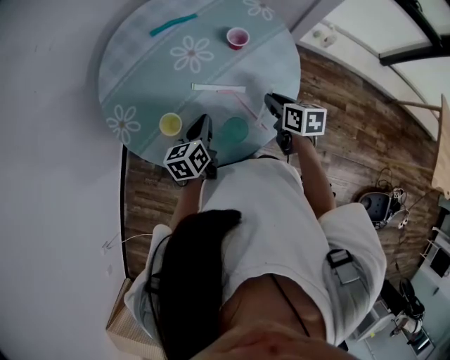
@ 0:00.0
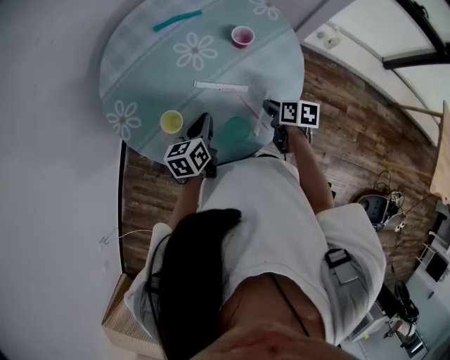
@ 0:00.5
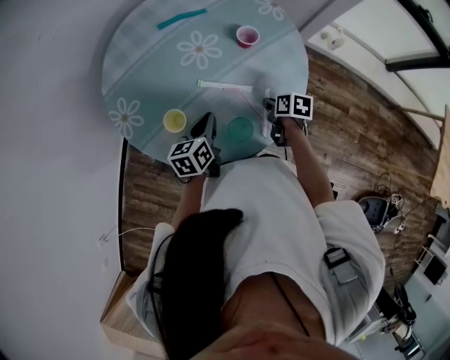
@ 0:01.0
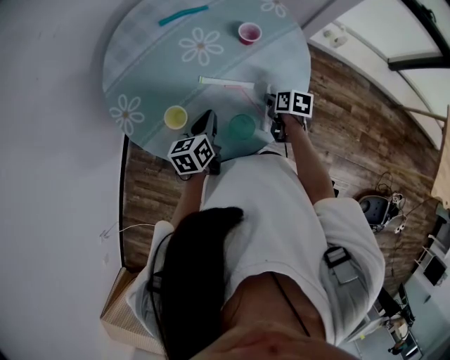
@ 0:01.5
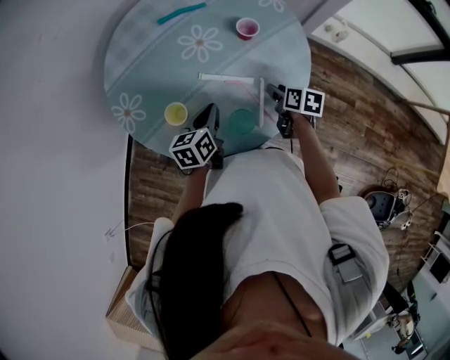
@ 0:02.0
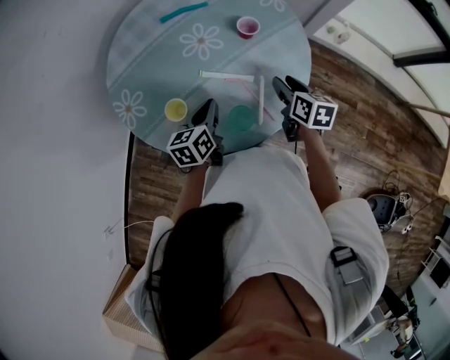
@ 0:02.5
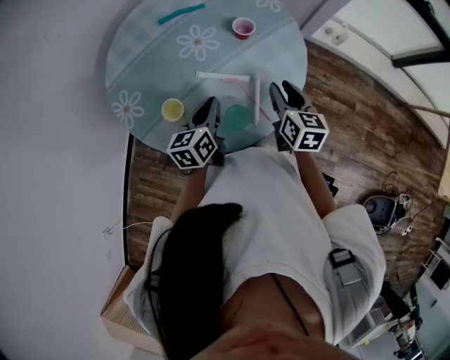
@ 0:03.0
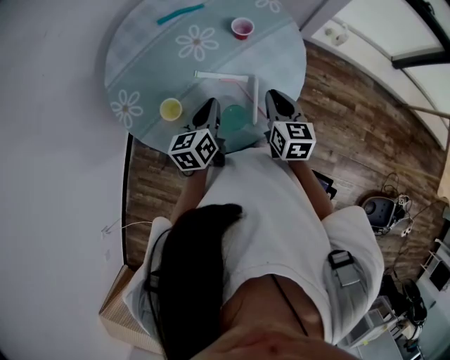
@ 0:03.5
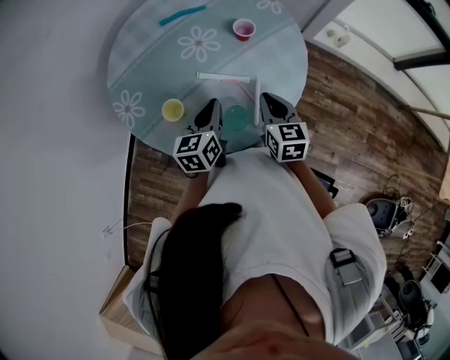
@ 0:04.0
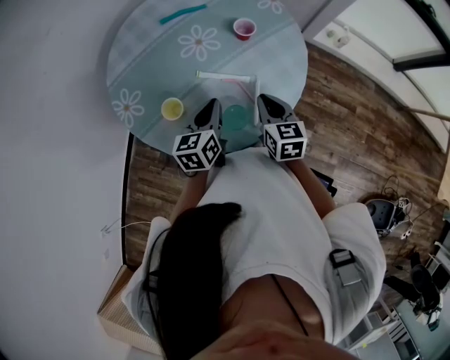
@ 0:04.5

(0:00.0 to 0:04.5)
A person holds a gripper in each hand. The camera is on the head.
0:00.0 - 0:02.0: The right gripper is displaced downward by approximately 5 cm, and opens.
0:02.0 - 0:04.5: The left gripper changes place by approximately 5 cm. Meanwhile the right gripper goes approximately 10 cm upward and backward, turns by approximately 30 degrees, and closes up.

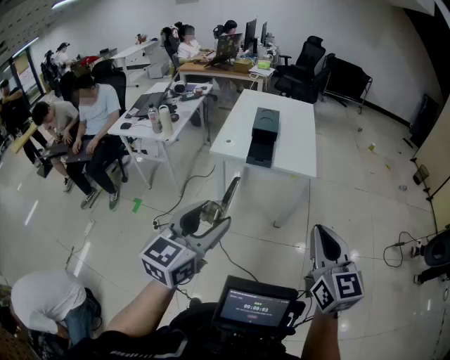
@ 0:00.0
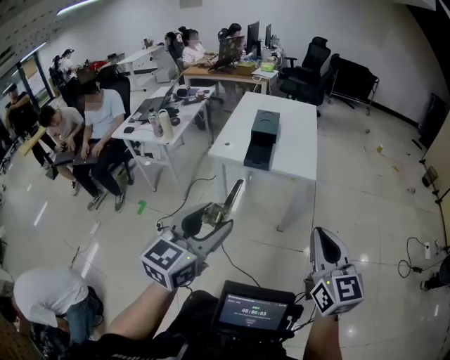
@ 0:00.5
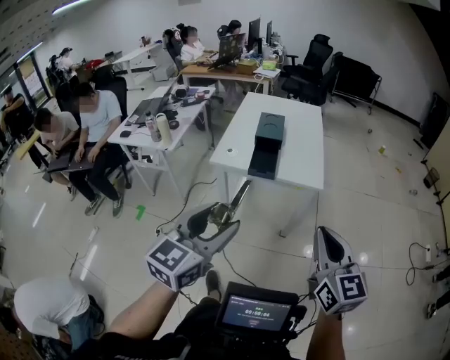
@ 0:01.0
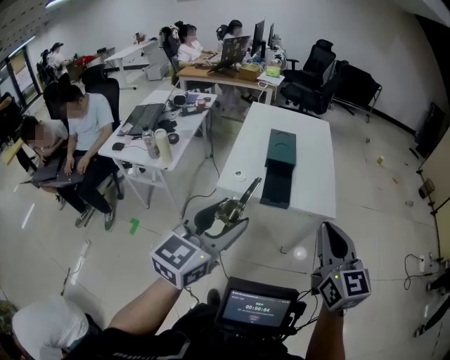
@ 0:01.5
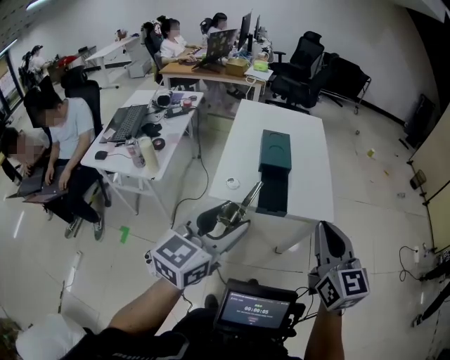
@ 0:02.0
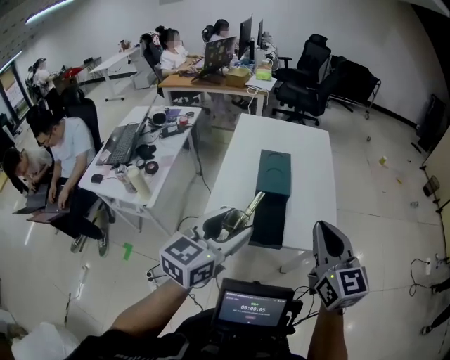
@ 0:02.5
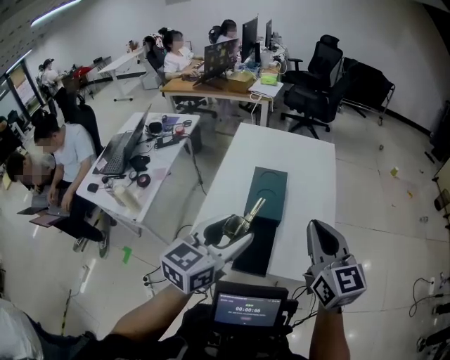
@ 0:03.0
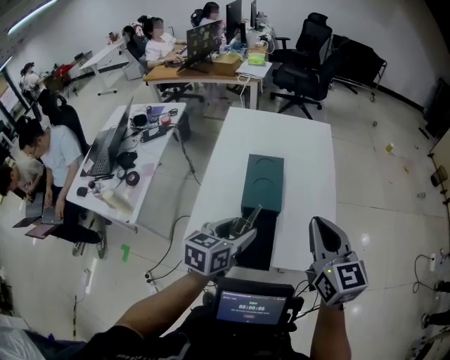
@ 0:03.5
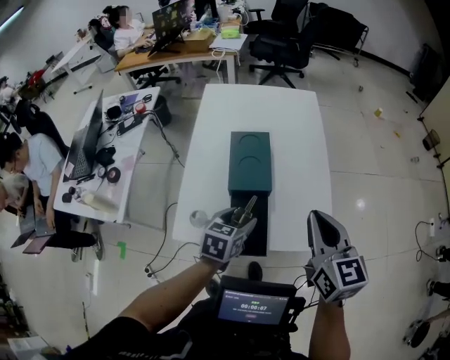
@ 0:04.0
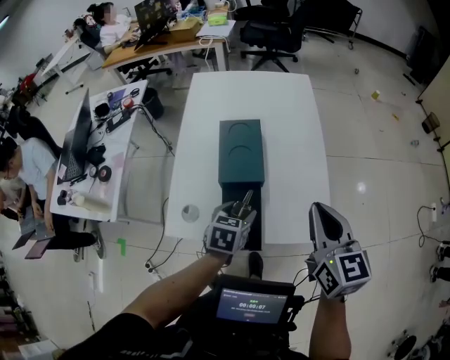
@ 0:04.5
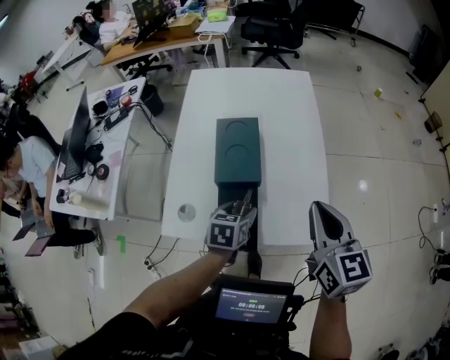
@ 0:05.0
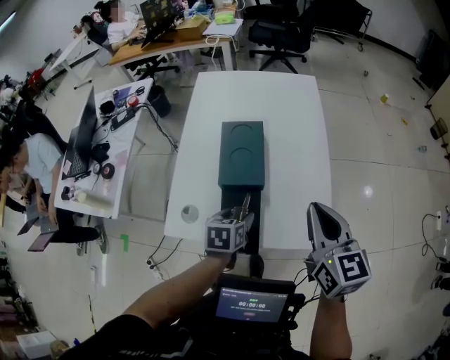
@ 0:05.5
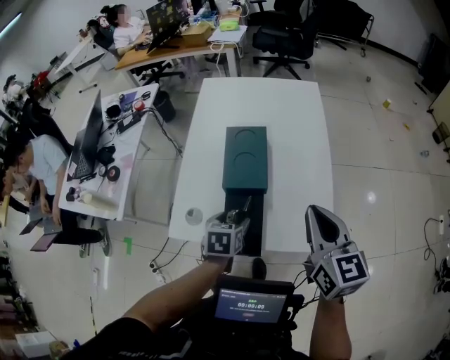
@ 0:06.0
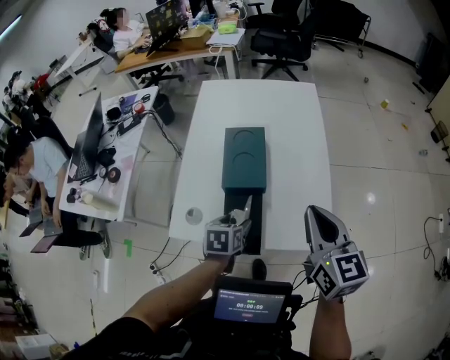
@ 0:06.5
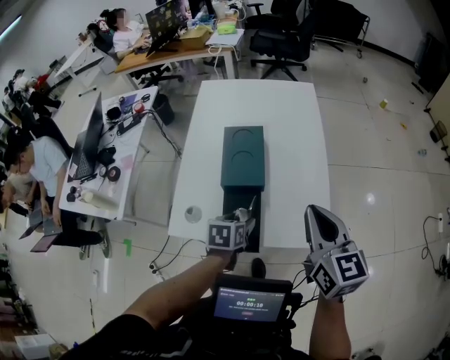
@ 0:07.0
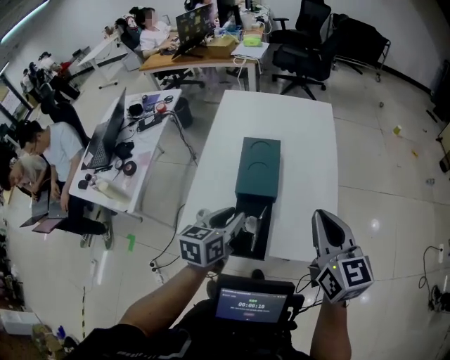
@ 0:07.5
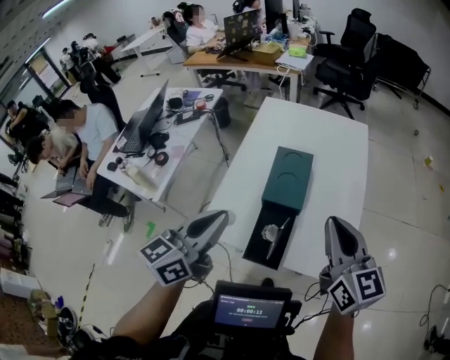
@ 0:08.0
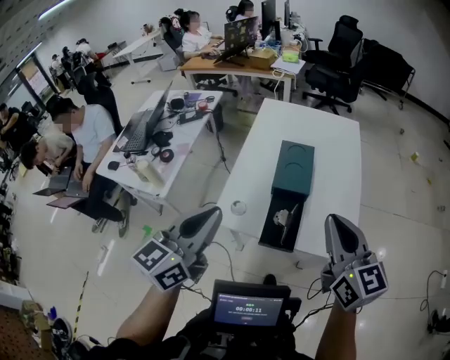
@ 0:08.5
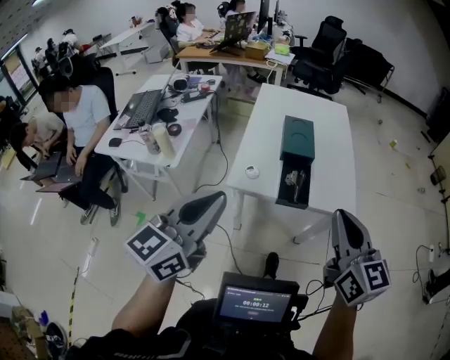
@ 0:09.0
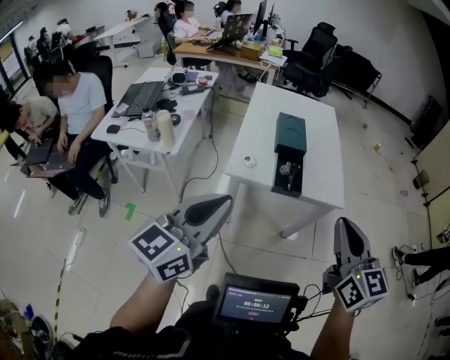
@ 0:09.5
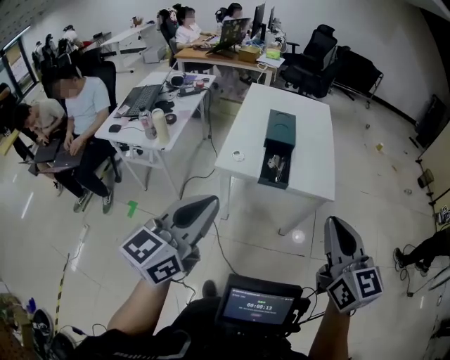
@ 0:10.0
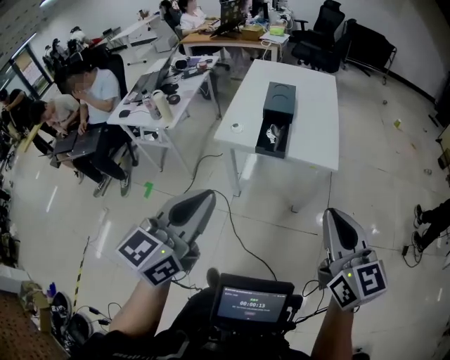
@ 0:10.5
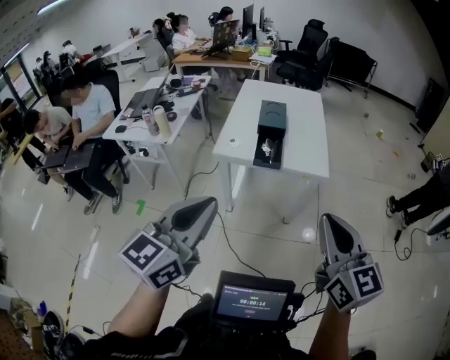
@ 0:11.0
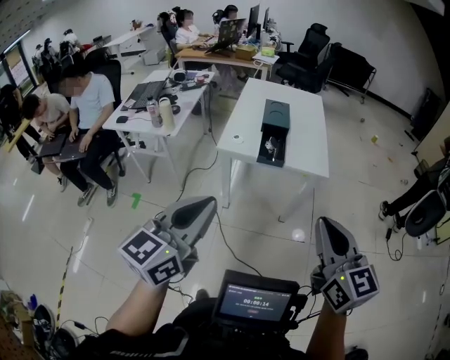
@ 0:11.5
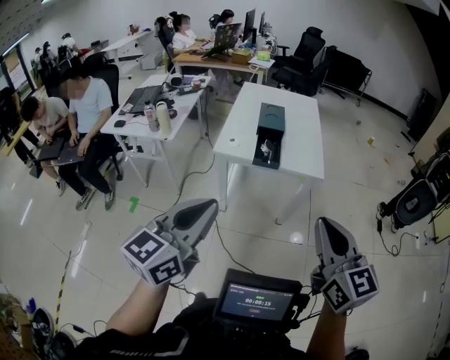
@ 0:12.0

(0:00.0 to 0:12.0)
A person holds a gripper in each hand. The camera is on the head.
0:00.0 - 0:02.0: The two grippers travel together, forward and to the left, some 40 cm.
0:02.0 - 0:04.0: Both grippers are carried forward, roughly 50 cm. The left gripper is displaced downward by about 25 cm, and angles its fingers downward, by approximately 40 degrees.
0:04.0 - 0:06.0: The right gripper shifts by about 5 cm, while the left gripper moves downward, roughly 5 cm, and changes its angle by approximately 20 degrees.
0:06.0 - 0:08.0: The right gripper moves upward, roughly 10 cm. The left gripper moves upward, approximately 30 cm, tips its fingers upward by roughly 50 degrees, and closes.
0:08.0 - 0:10.0: The pair of grippers is taken backward, roughly 60 cm.
0:10.0 - 0:12.0: Both grippers travel together backward, roughly 20 cm.

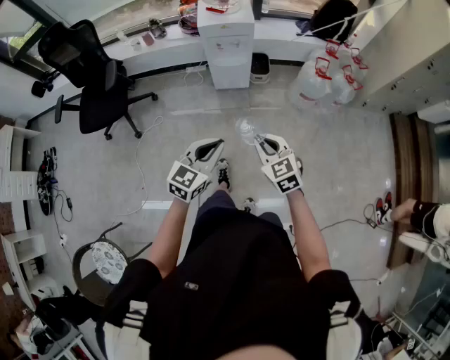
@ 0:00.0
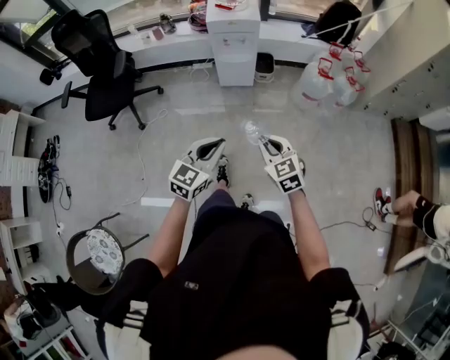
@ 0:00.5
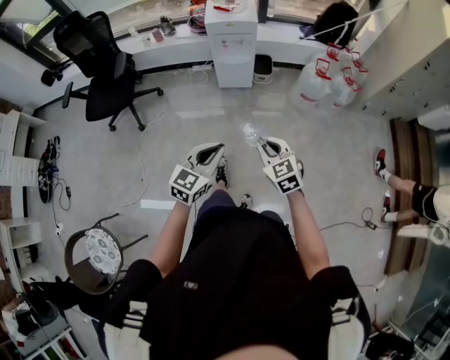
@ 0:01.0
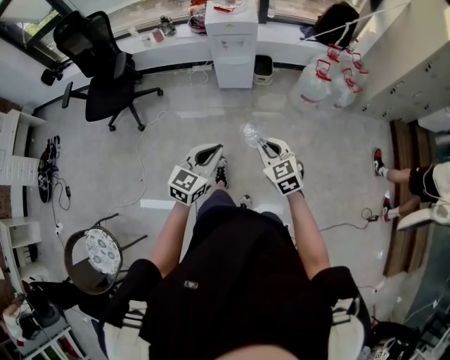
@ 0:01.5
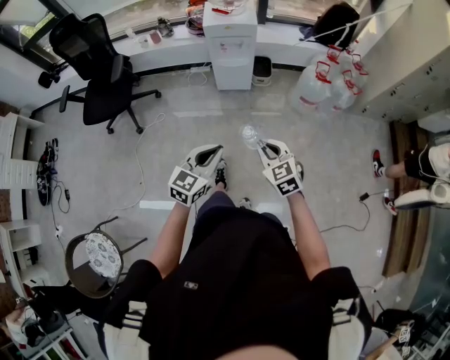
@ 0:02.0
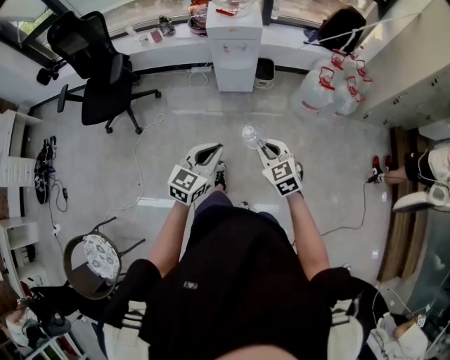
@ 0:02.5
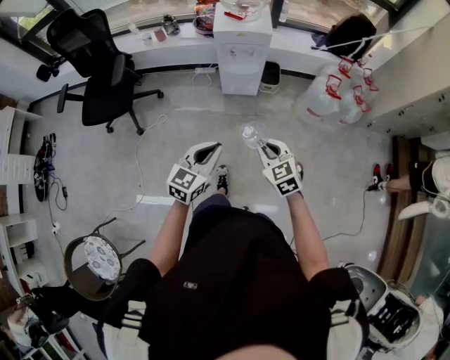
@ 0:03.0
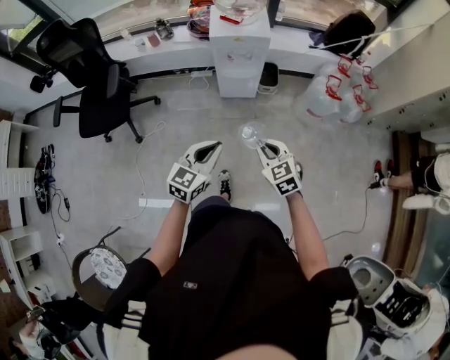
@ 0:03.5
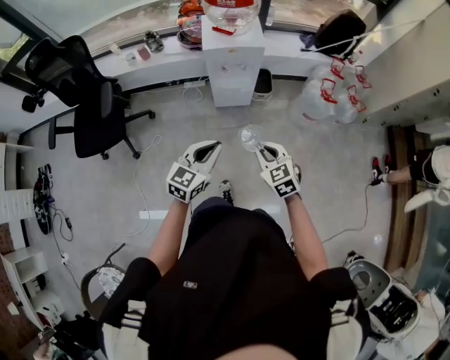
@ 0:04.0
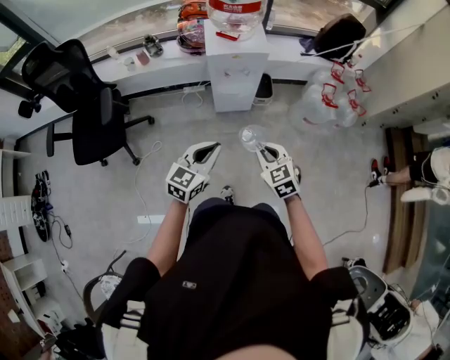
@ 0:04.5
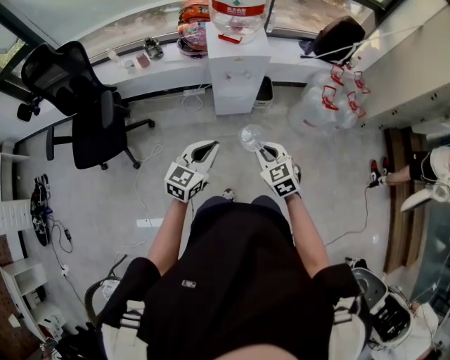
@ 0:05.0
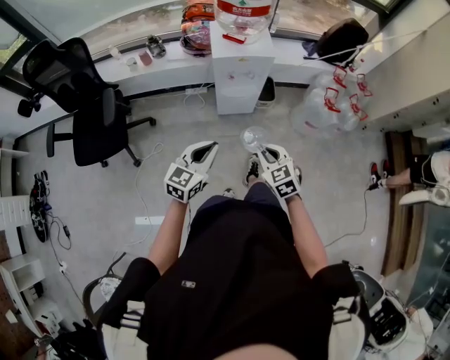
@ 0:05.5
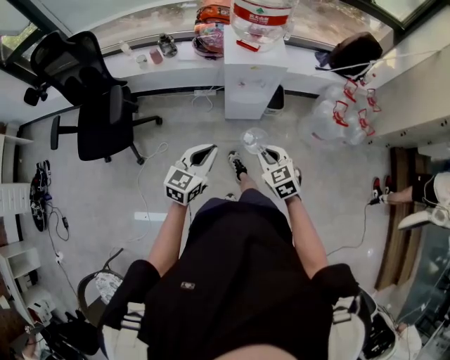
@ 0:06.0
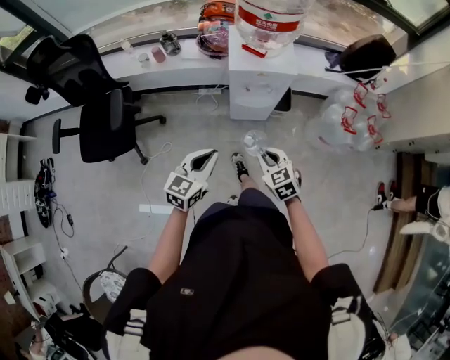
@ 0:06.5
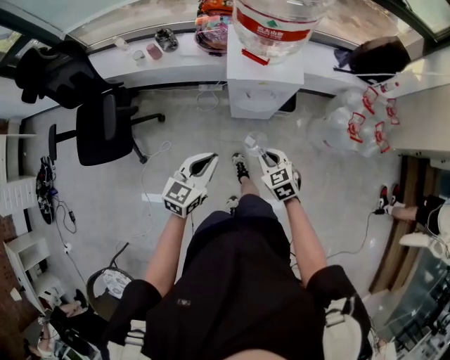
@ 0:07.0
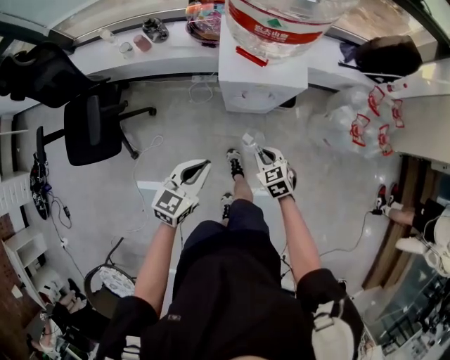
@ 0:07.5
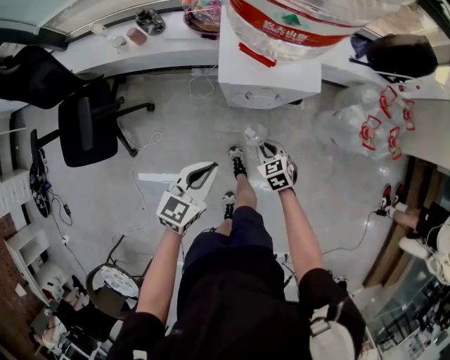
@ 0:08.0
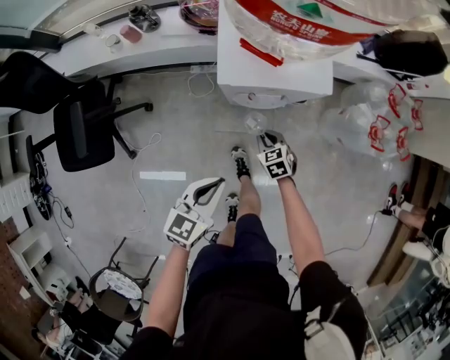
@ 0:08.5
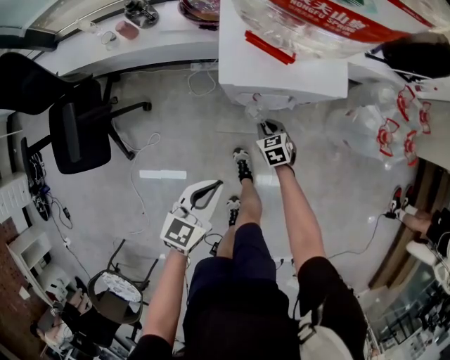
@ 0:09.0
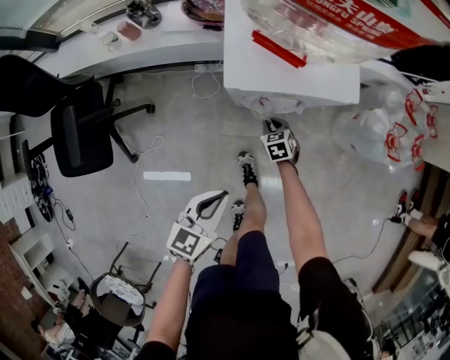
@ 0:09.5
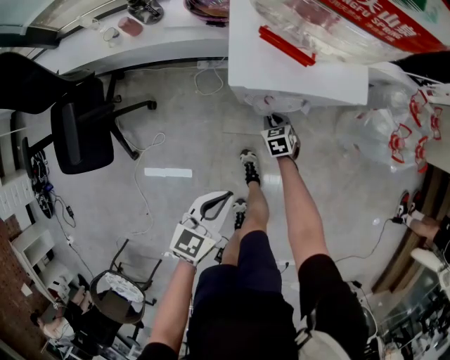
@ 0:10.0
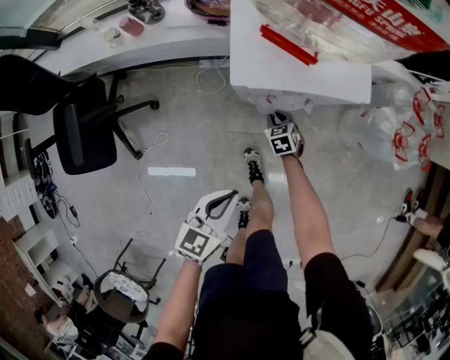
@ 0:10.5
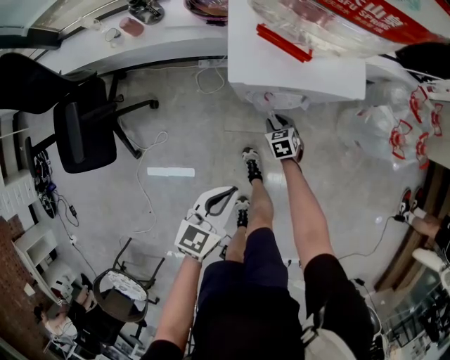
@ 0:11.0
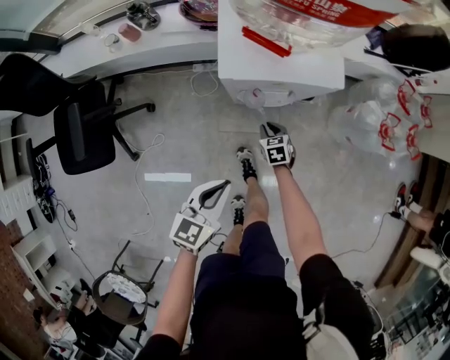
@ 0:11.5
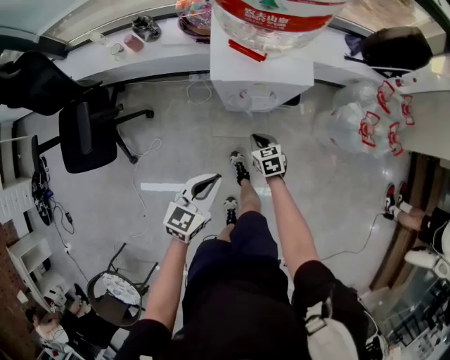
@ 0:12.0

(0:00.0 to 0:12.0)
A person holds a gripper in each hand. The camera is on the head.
0:00.0 - 0:02.0: The left gripper goes approximately 5 cm backward.
0:02.0 - 0:04.0: The right gripper is displaced forward and to the left by about 25 cm. Meanwhile the left gripper travels forward by about 25 cm.
0:04.0 - 0:06.0: The left gripper goes about 10 cm to the left and forward; the right gripper shifts approximately 10 cm forward and to the left.
0:06.0 - 0:08.0: The right gripper travels downward and forward by some 35 cm. Meanwhile the left gripper is displaced forward and downward by approximately 25 cm.
0:08.0 - 0:10.0: The right gripper heads downward and forward, covering roughly 25 cm, while the left gripper is displaced downward by about 10 cm.
0:10.0 - 0:12.0: The right gripper travels upward and backward by approximately 20 cm, and opens, then closes again. The left gripper heads upward, covering approximately 10 cm.
